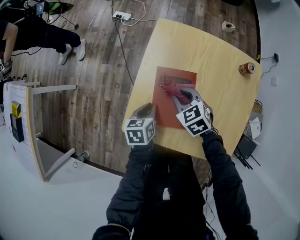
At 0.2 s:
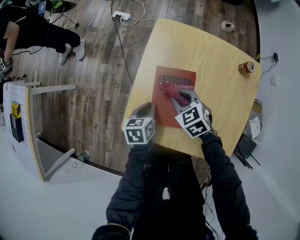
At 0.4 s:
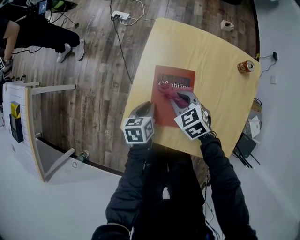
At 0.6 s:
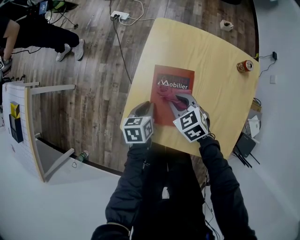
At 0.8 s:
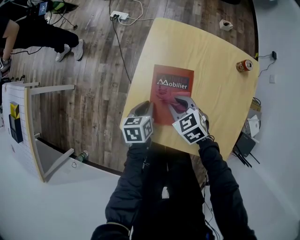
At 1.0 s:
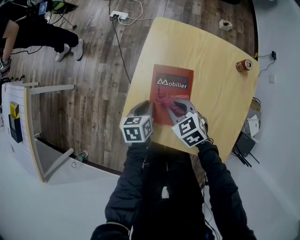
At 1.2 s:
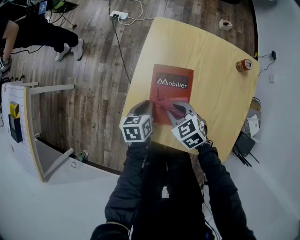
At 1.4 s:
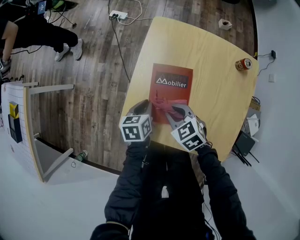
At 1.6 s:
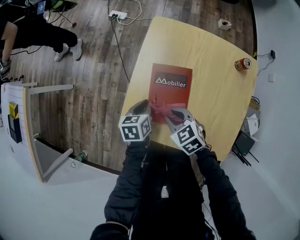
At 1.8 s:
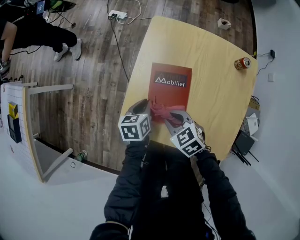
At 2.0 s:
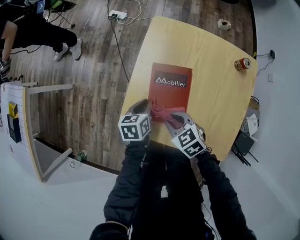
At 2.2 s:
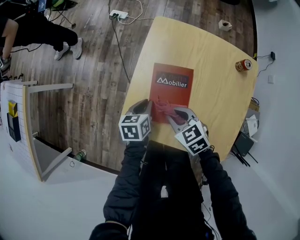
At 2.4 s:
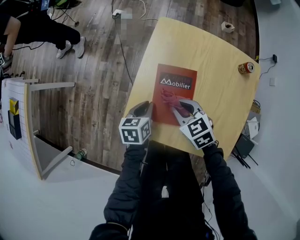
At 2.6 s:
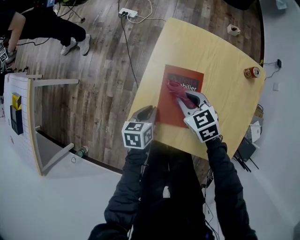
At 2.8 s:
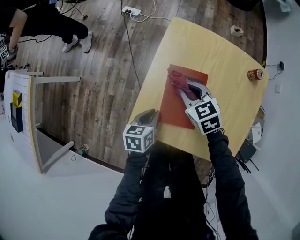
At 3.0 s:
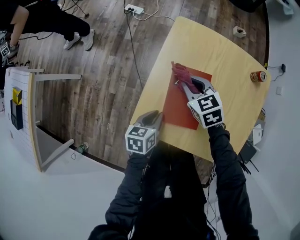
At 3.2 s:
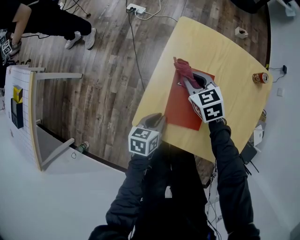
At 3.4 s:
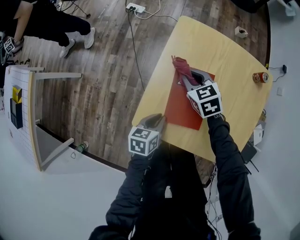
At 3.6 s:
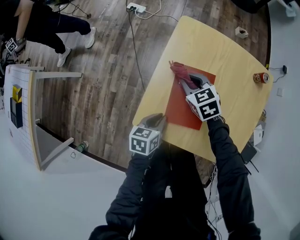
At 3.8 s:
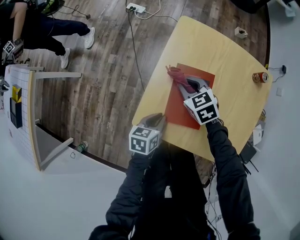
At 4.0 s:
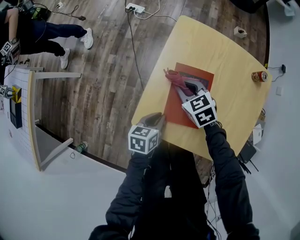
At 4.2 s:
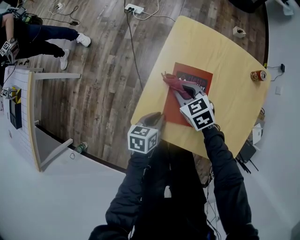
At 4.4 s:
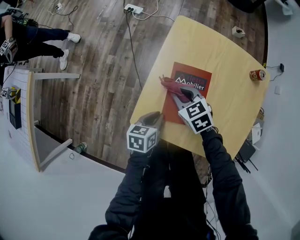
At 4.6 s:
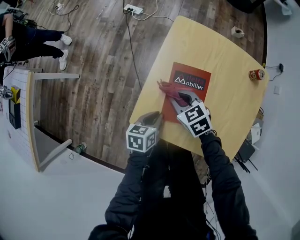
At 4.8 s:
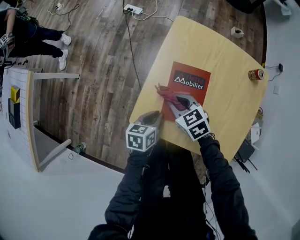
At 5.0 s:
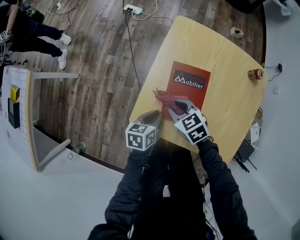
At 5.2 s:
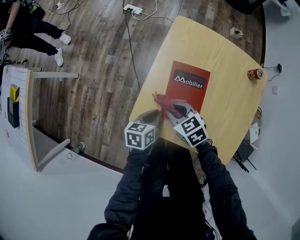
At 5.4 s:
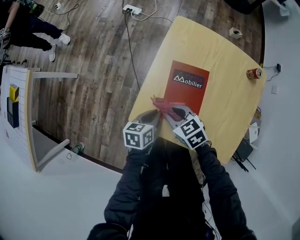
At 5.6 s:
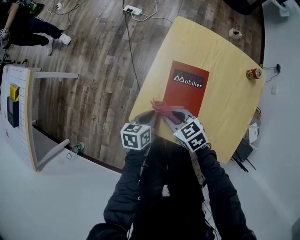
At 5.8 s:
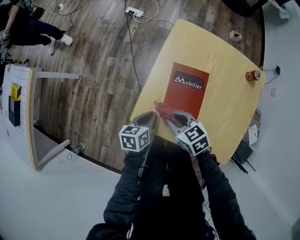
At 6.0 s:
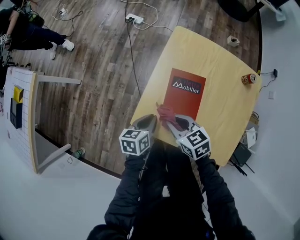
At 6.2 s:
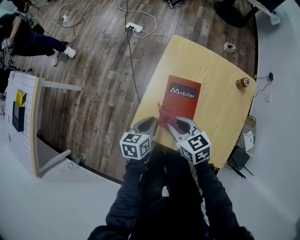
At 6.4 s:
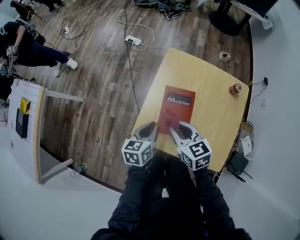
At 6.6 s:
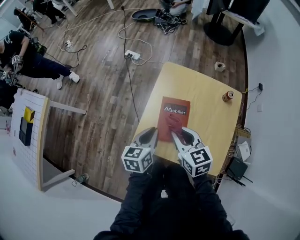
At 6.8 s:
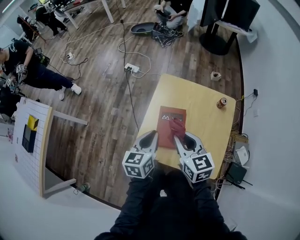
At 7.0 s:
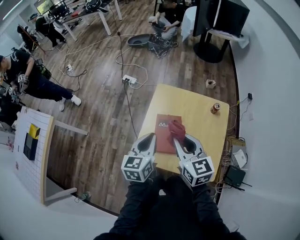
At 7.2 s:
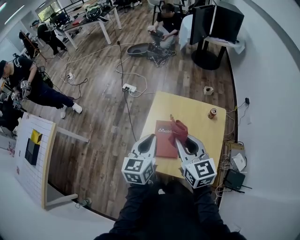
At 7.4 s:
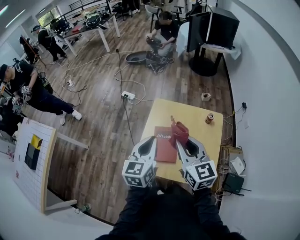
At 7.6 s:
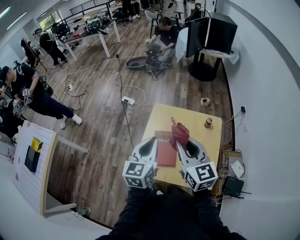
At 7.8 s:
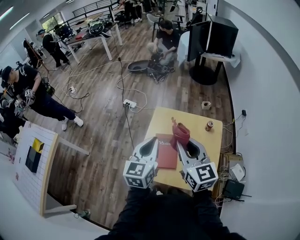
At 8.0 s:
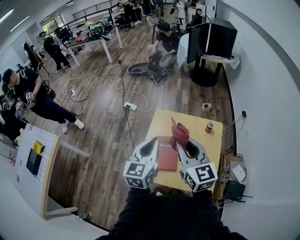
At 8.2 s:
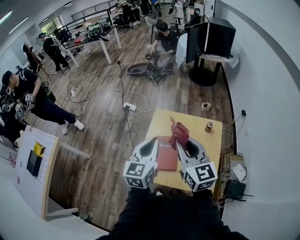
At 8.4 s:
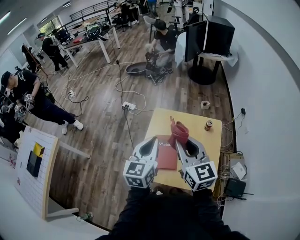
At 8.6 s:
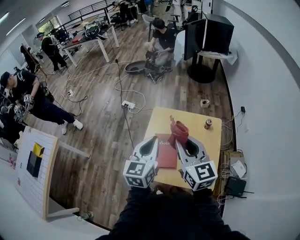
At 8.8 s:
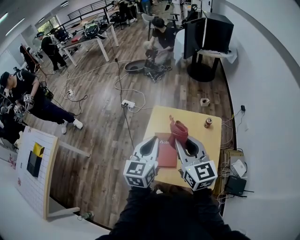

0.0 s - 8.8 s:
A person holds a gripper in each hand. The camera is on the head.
0.0 s - 1.4 s: The right gripper moves backward, about 10 cm.
1.4 s - 3.0 s: The right gripper travels forward by about 15 cm.
3.0 s - 4.4 s: The right gripper moves backward, roughly 5 cm.
4.4 s - 5.8 s: The right gripper travels backward by approximately 10 cm.
5.8 s - 7.4 s: The grippers both shift upward by about 40 cm. The left gripper tips its fingers upward by roughly 30 degrees. Meanwhile the right gripper changes its angle by some 50 degrees.
7.4 s - 8.8 s: The grippers make only small movements.

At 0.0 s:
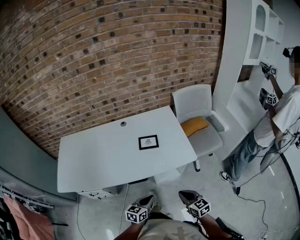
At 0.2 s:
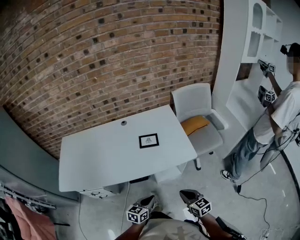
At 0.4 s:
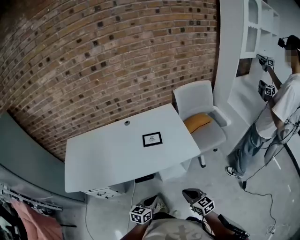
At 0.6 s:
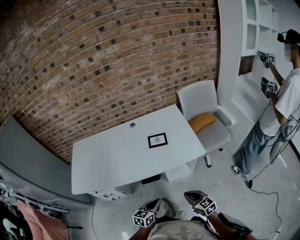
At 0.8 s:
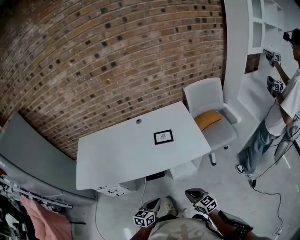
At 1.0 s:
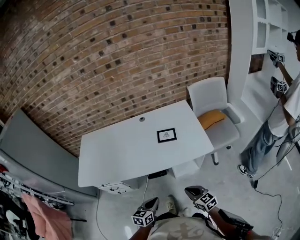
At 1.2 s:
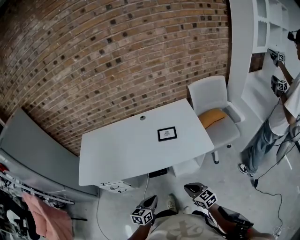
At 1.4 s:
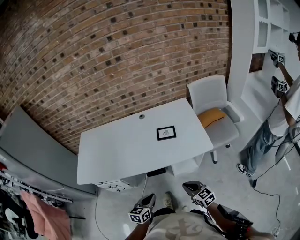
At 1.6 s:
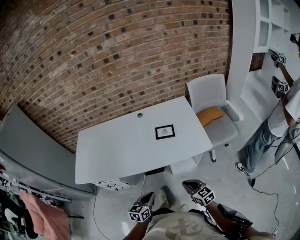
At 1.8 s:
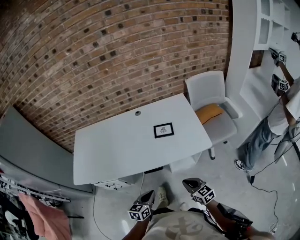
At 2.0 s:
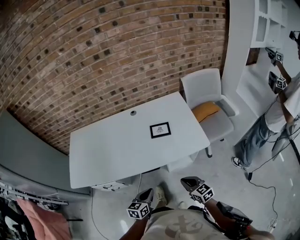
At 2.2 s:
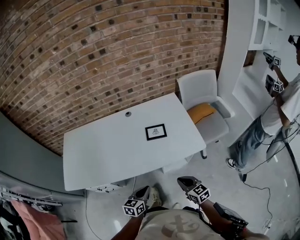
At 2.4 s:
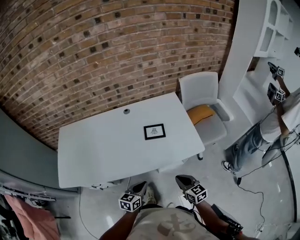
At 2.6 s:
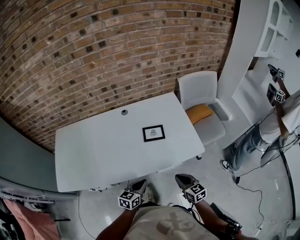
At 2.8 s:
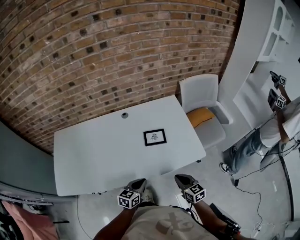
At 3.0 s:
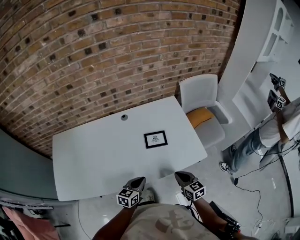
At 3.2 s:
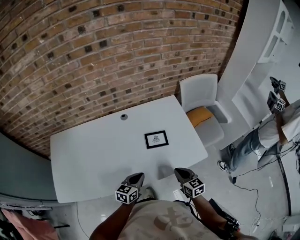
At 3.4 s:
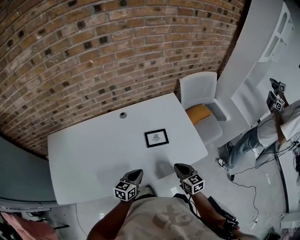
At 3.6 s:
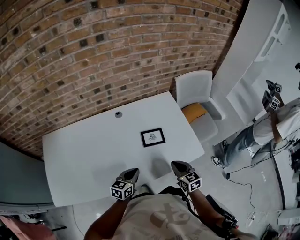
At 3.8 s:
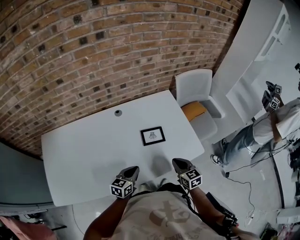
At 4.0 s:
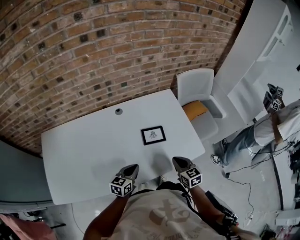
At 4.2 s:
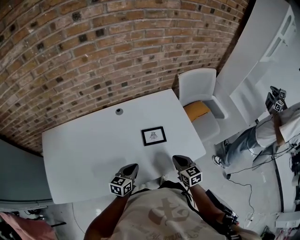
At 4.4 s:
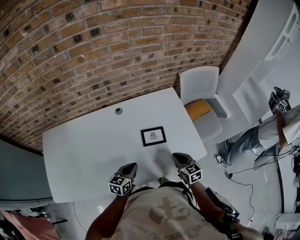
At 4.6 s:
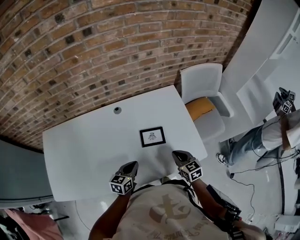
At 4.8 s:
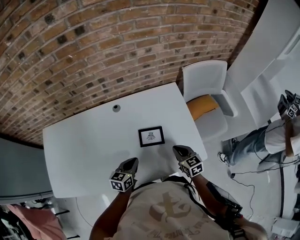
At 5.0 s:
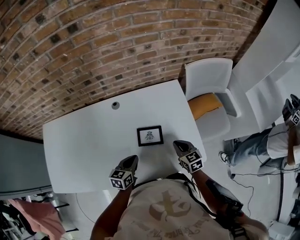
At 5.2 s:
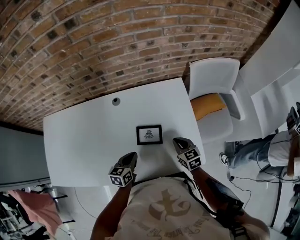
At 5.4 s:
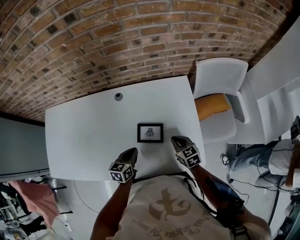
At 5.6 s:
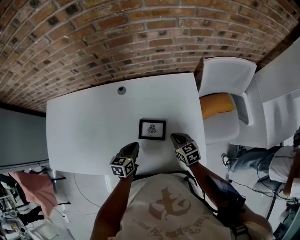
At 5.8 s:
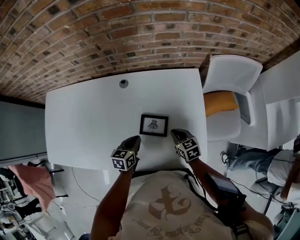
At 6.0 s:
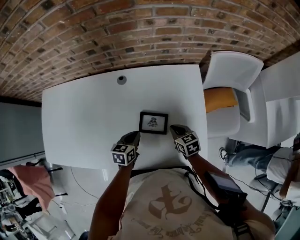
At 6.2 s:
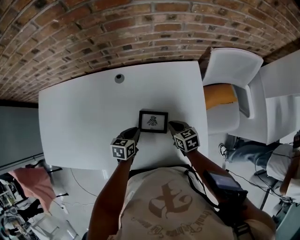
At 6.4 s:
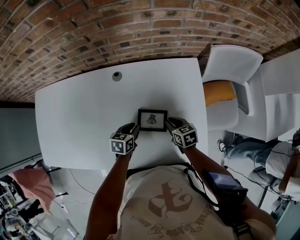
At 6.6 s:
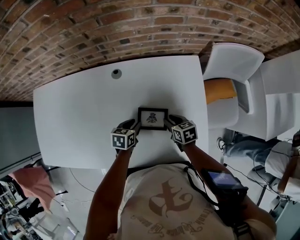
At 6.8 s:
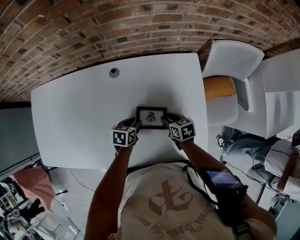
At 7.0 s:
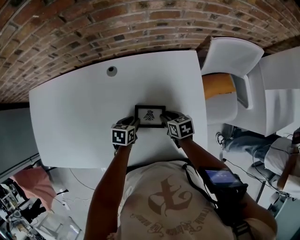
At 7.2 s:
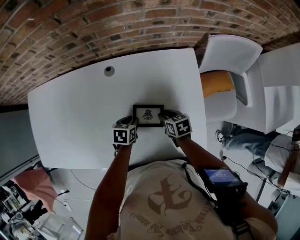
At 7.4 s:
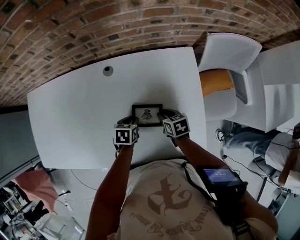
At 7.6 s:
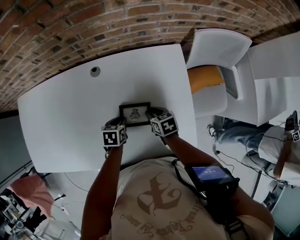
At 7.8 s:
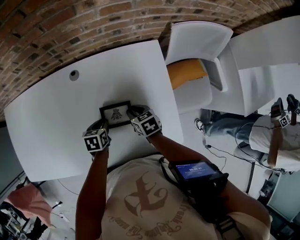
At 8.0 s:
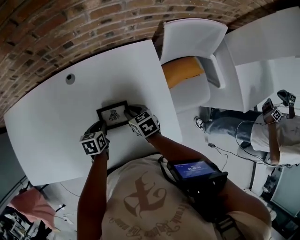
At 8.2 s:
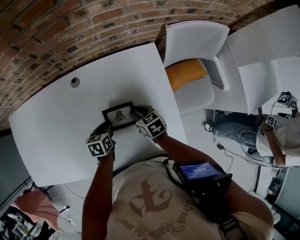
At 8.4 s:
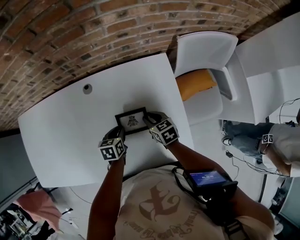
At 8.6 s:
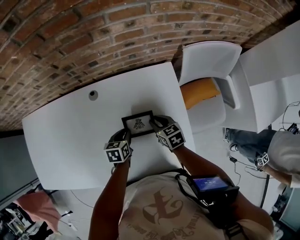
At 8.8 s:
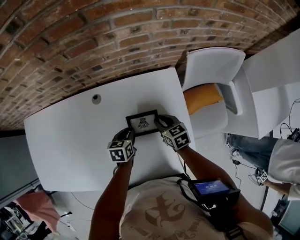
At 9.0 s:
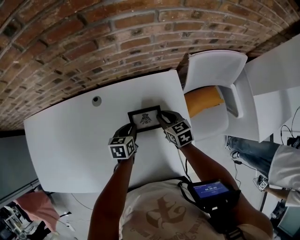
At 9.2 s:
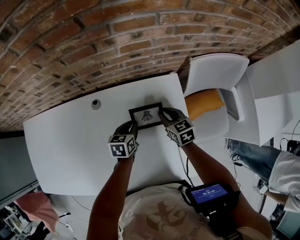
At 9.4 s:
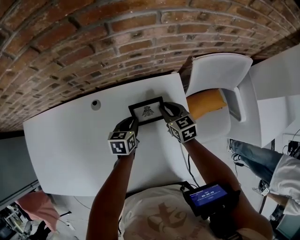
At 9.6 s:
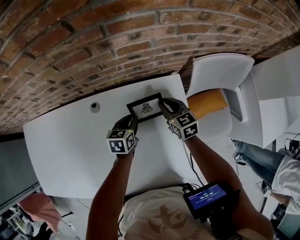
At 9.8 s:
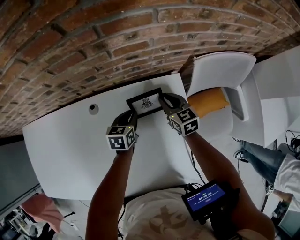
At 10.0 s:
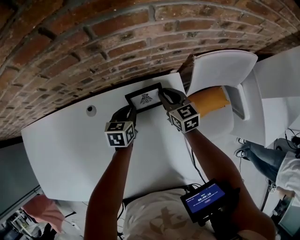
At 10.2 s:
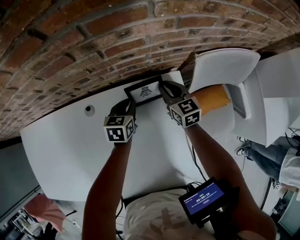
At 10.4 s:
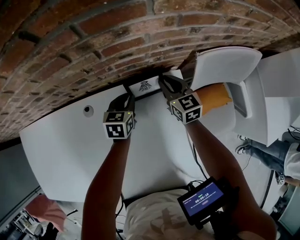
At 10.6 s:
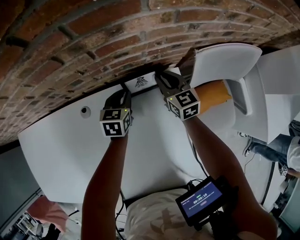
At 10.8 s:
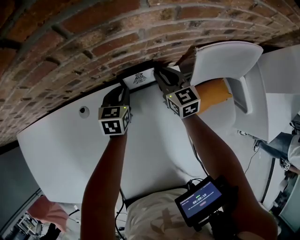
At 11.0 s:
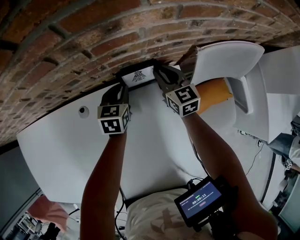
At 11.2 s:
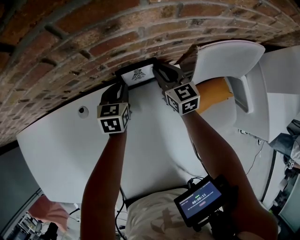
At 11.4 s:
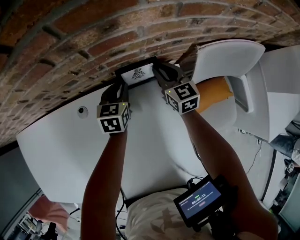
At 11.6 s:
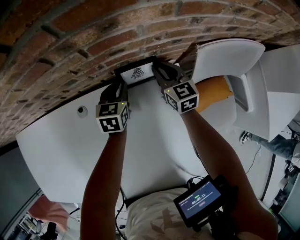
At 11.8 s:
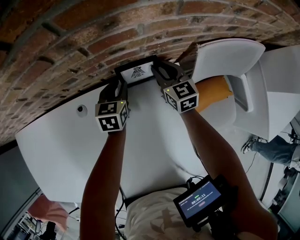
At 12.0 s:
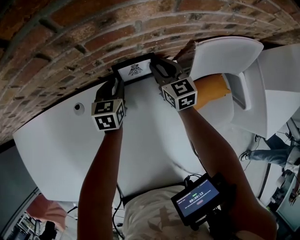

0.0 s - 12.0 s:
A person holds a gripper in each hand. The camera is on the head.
0.0 s - 1.6 s: Both grippers travel together to the left, some 5 cm.
1.6 s - 3.0 s: The grippers both shift forward by about 20 cm.
3.0 s - 4.4 s: Both grippers travel together forward, roughly 10 cm.
4.4 s - 6.0 s: The left gripper is displaced forward, to the right and downward by roughly 15 cm, and changes its angle by approximately 30 degrees. The right gripper moves forward and downward, approximately 20 cm, and swivels about 30 degrees.
6.0 s - 7.6 s: The left gripper shifts about 5 cm downward; the right gripper changes place by approximately 5 cm, and opens up.
7.6 s - 9.0 s: The left gripper shifts some 10 cm forward and to the right. The right gripper moves forward, to the right and upward, roughly 15 cm.
9.0 s - 10.4 s: The two grippers go some 20 cm forward.
10.4 s - 12.0 s: The grippers stay close to where they were, moving slightly.

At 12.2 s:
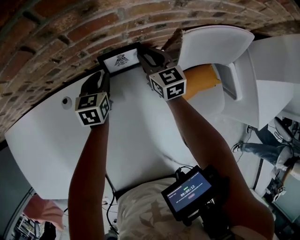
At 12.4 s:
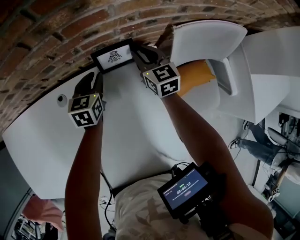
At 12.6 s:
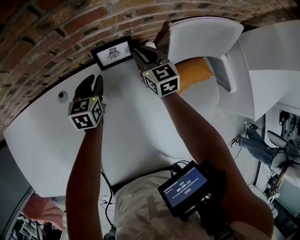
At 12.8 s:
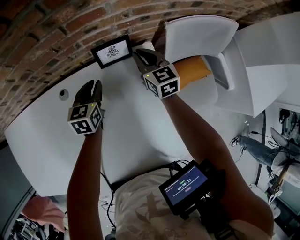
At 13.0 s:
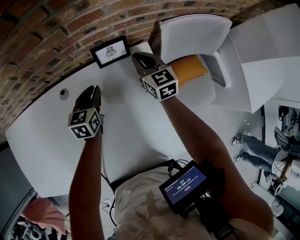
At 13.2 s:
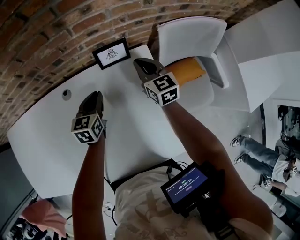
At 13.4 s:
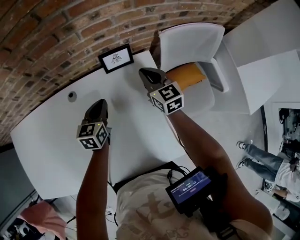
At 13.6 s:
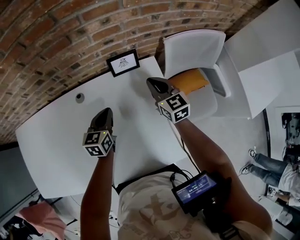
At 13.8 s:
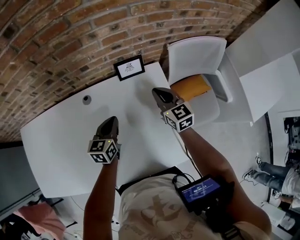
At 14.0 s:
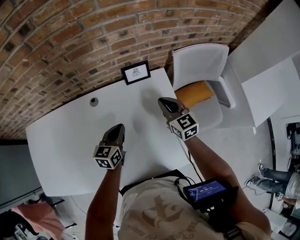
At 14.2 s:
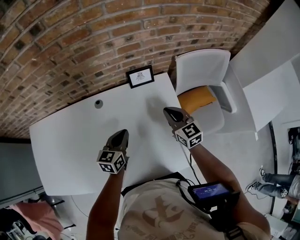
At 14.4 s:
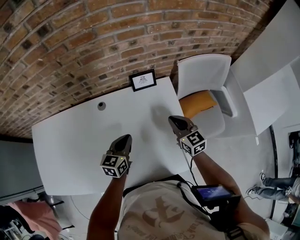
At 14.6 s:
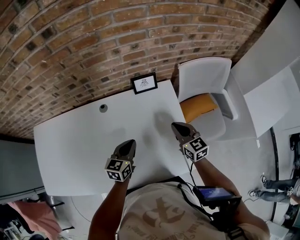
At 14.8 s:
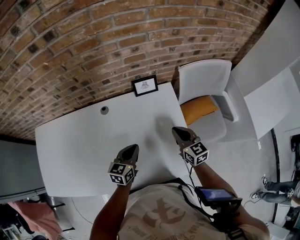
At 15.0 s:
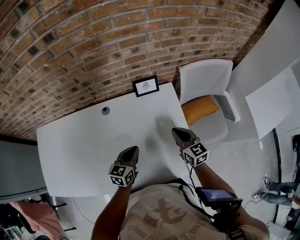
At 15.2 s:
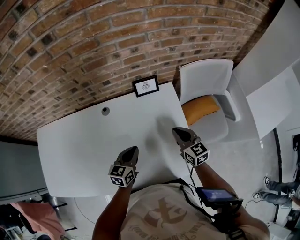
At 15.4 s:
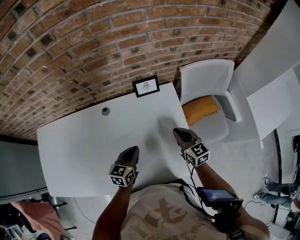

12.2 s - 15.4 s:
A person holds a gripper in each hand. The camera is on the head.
12.2 s - 13.8 s: The grippers both shift backward and upward by roughly 25 cm. The right gripper closes its fingers. Meanwhile the left gripper closes up.
13.8 s - 15.4 s: Both grippers move backward, roughly 10 cm.
